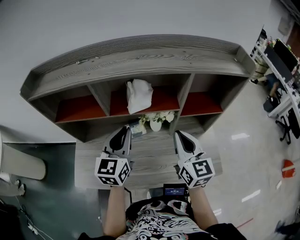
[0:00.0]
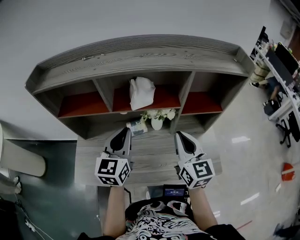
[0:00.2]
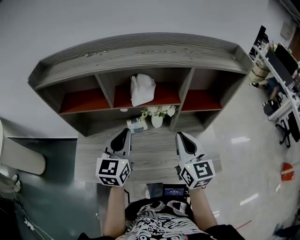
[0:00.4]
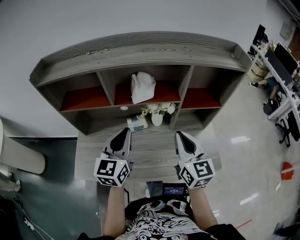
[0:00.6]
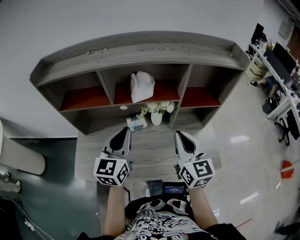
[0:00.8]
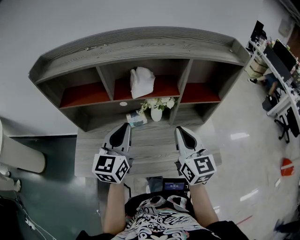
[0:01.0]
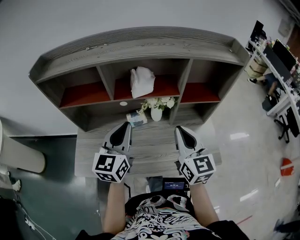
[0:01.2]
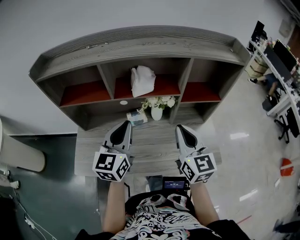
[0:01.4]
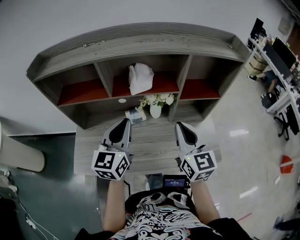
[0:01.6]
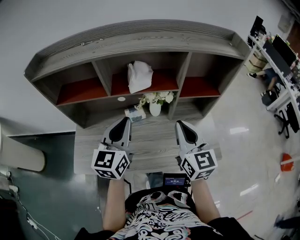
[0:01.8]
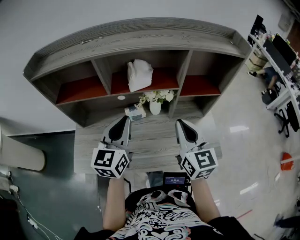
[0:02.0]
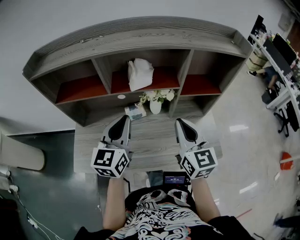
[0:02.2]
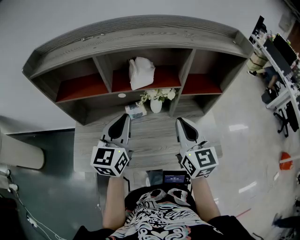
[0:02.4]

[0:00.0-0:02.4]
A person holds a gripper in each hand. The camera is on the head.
0.0 to 1.2 s: The two grippers go some 5 cm backward.
1.2 to 2.4 s: Both grippers stay put.

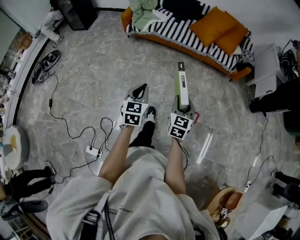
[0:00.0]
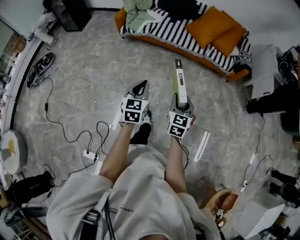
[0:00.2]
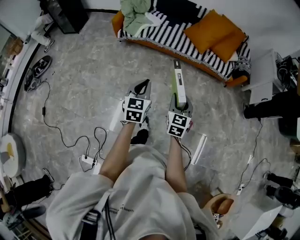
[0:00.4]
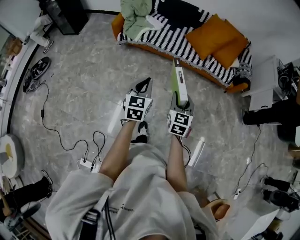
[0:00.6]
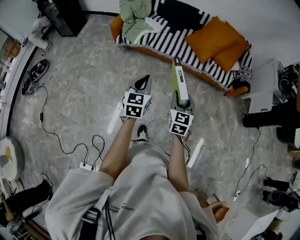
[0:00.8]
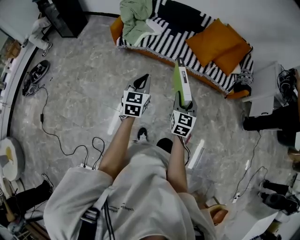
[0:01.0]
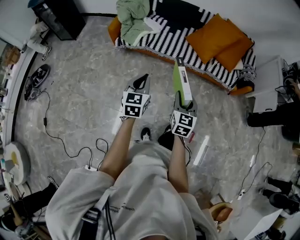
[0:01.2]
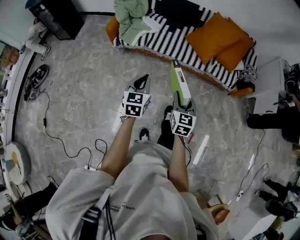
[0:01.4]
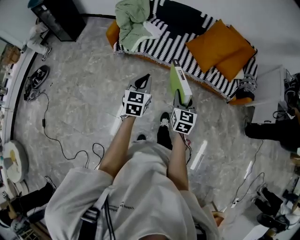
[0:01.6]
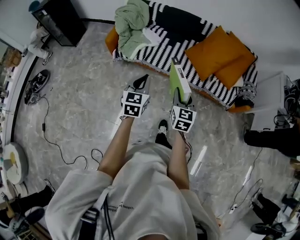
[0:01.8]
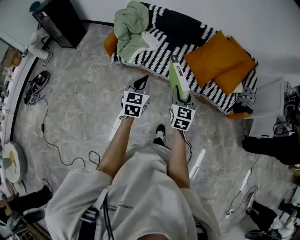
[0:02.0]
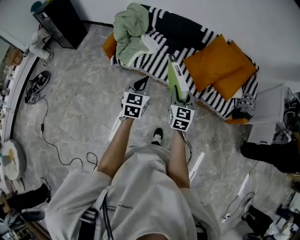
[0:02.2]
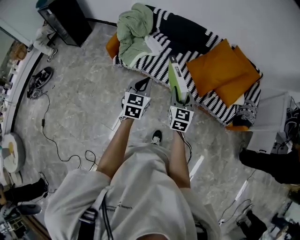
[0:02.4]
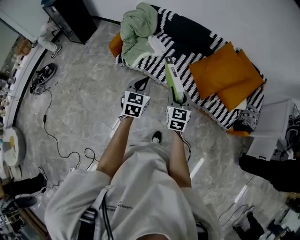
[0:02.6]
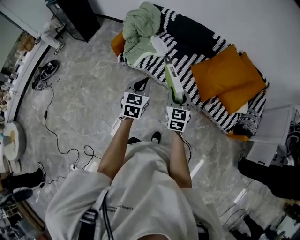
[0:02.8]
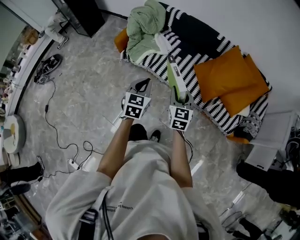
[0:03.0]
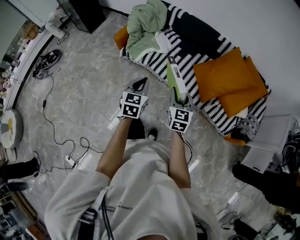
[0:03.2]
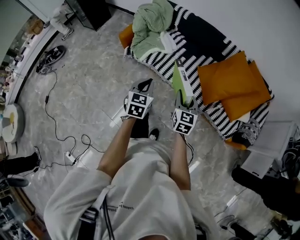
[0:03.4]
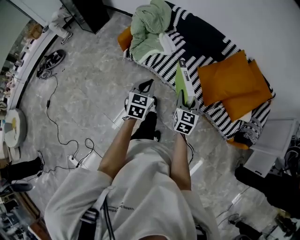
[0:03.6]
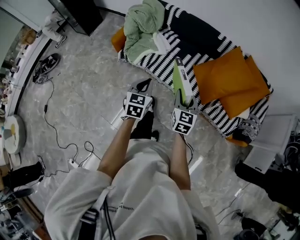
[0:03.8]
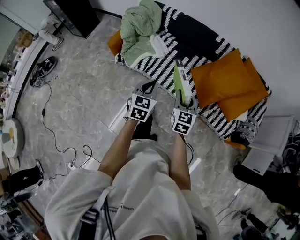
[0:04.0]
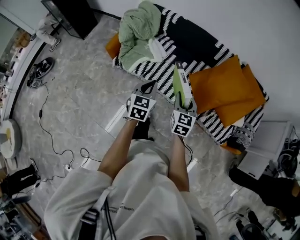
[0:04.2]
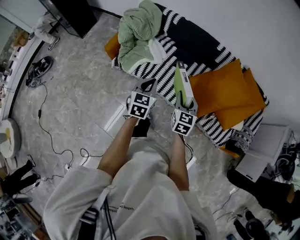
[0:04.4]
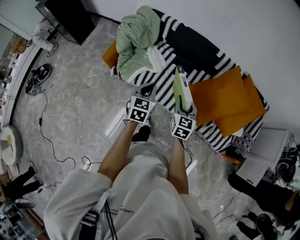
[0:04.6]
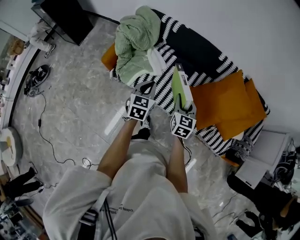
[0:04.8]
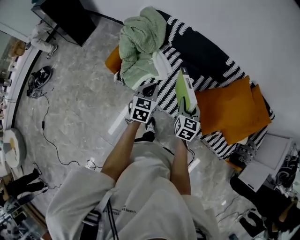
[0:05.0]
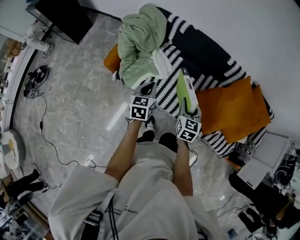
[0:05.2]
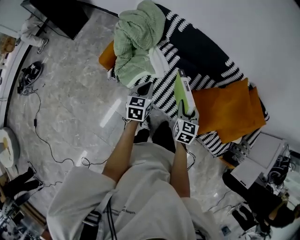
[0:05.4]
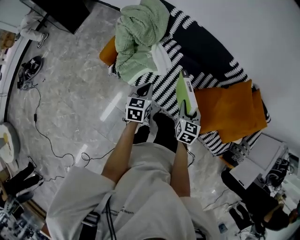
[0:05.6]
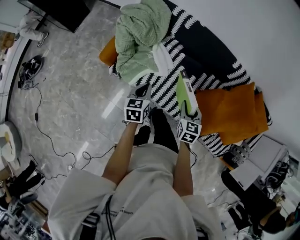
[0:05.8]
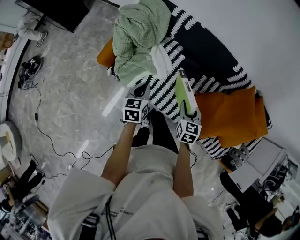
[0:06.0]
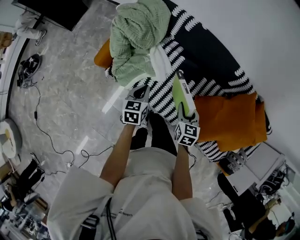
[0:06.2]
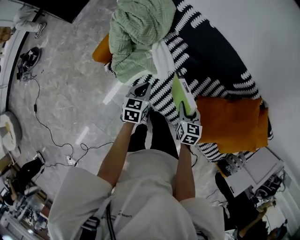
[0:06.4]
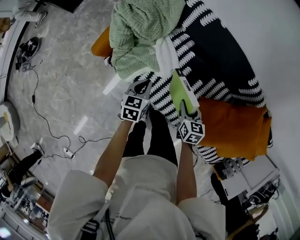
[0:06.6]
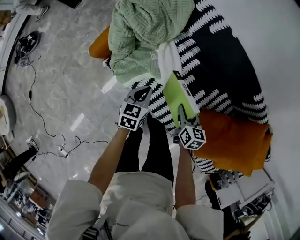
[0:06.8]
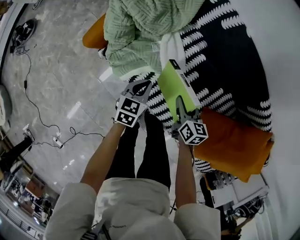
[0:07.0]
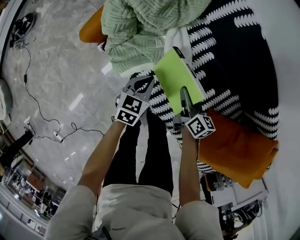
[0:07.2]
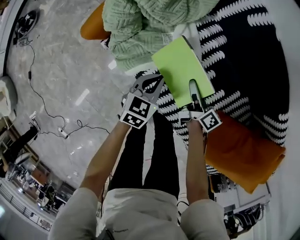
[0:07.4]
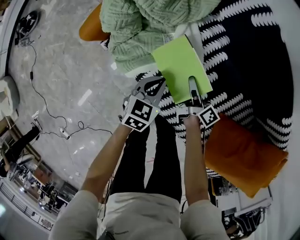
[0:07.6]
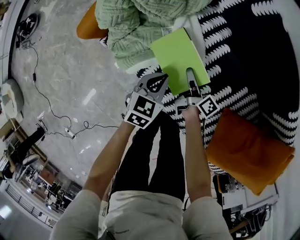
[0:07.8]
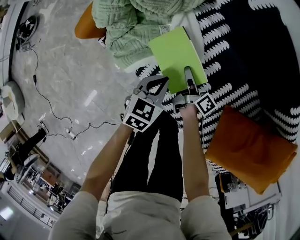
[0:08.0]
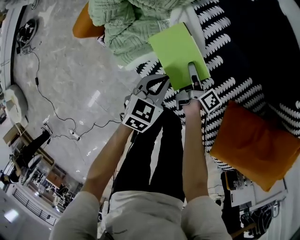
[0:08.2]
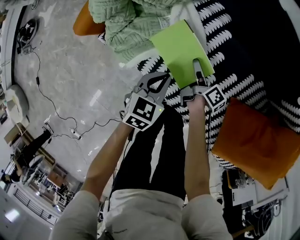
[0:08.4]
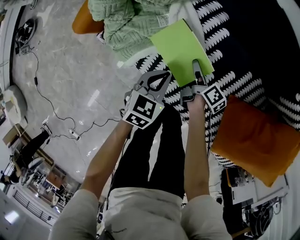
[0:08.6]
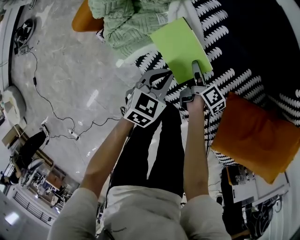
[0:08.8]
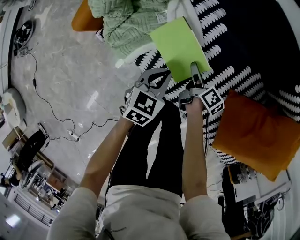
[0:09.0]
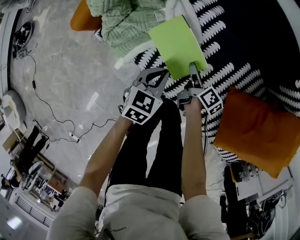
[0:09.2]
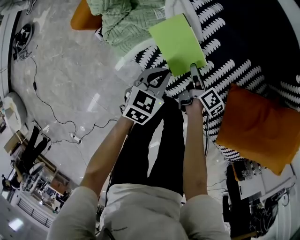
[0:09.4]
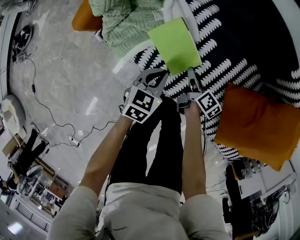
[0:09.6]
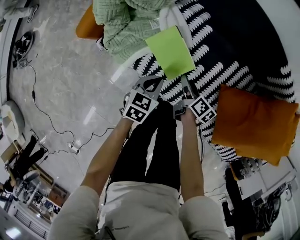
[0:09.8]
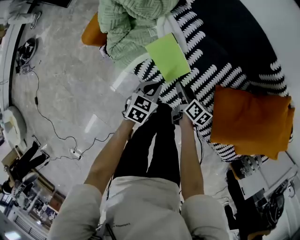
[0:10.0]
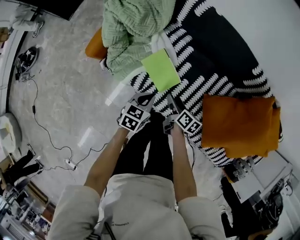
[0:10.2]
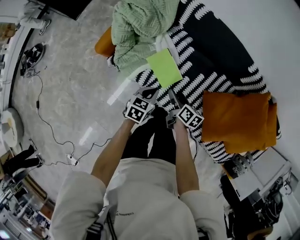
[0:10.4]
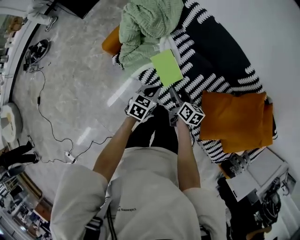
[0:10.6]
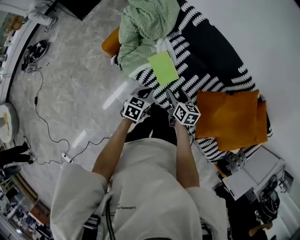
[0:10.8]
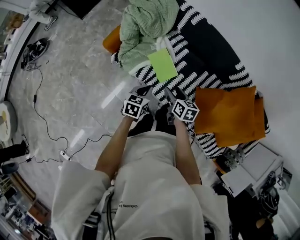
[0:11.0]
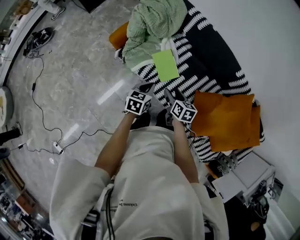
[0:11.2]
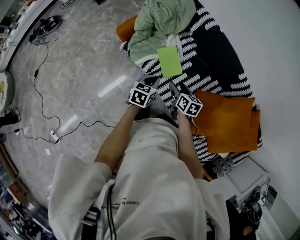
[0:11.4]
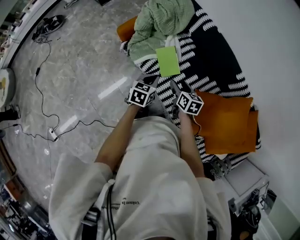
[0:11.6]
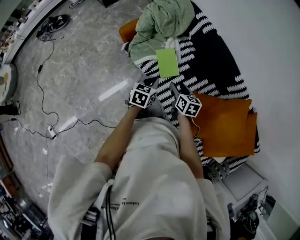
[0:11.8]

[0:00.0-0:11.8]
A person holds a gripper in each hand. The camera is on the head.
0.0 to 1.4 s: Both grippers move forward, some 35 cm.
1.4 to 3.0 s: Both grippers travel together forward, some 25 cm.
3.0 to 4.4 s: Both grippers move forward, approximately 15 cm.
4.4 to 6.0 s: The right gripper heads forward and downward, covering some 25 cm. Meanwhile the left gripper moves forward, to the left and downward, roughly 30 cm, and rotates some 20 degrees.
6.0 to 7.4 s: Both grippers move downward and forward, about 30 cm. The right gripper turns by approximately 70 degrees.
7.4 to 8.8 s: The right gripper heads downward and backward, covering roughly 10 cm, swivels roughly 30 degrees, and opens. The left gripper heads backward and to the right, covering some 5 cm.
8.8 to 10.4 s: The left gripper travels upward and backward by approximately 15 cm. Meanwhile the right gripper goes about 25 cm upward and backward, and changes its angle by about 20 degrees.
10.4 to 11.8 s: Both grippers move upward and backward, some 15 cm. The right gripper swivels approximately 40 degrees. Meanwhile the left gripper changes its angle by roughly 20 degrees.

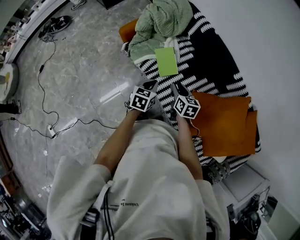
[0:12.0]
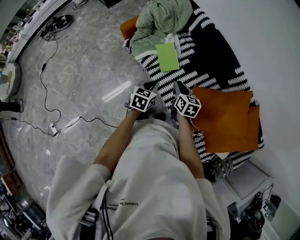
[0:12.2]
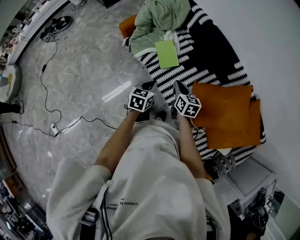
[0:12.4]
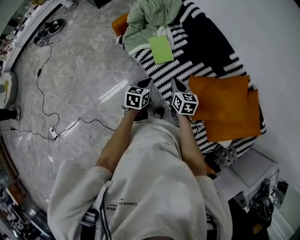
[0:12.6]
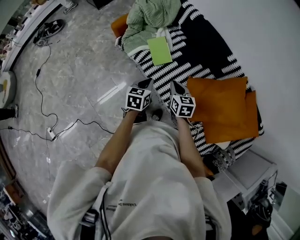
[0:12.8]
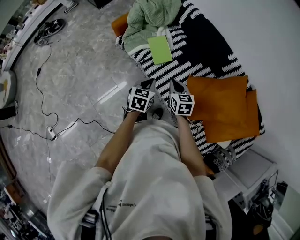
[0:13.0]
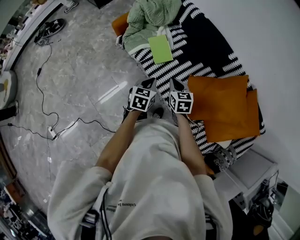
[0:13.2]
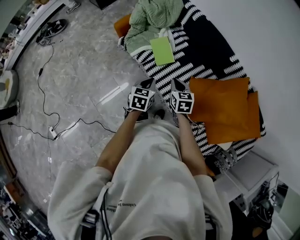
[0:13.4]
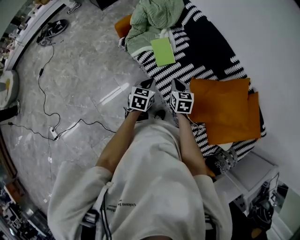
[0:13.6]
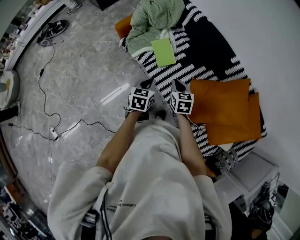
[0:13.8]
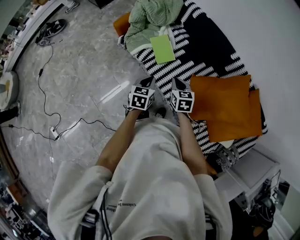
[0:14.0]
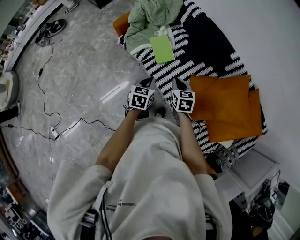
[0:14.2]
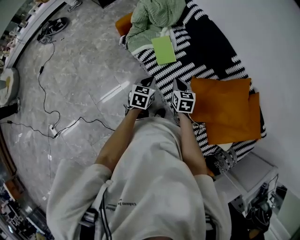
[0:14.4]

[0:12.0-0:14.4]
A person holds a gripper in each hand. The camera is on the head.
12.0 to 13.2 s: Both grippers move backward, some 10 cm. The right gripper closes up.
13.2 to 14.4 s: There are only small adjustments of the grippers.

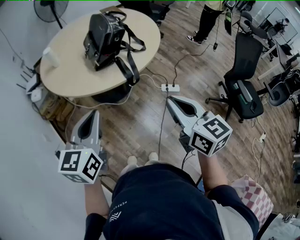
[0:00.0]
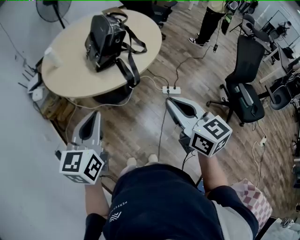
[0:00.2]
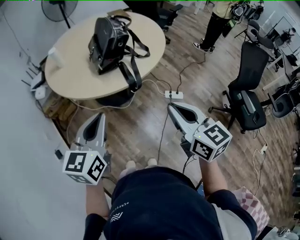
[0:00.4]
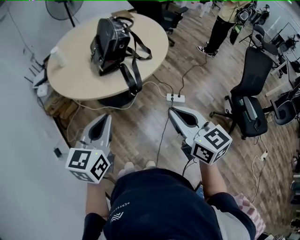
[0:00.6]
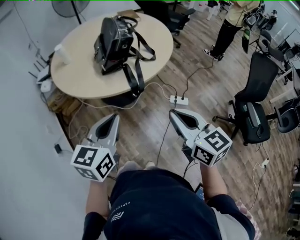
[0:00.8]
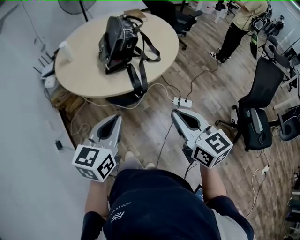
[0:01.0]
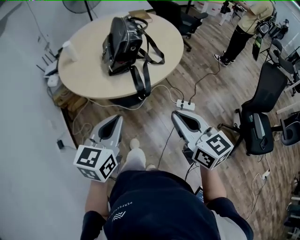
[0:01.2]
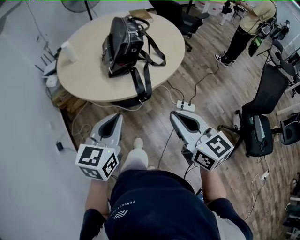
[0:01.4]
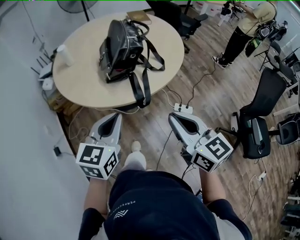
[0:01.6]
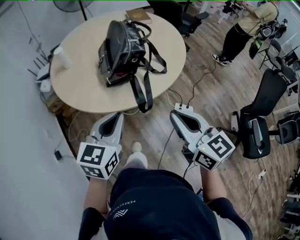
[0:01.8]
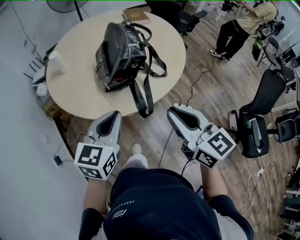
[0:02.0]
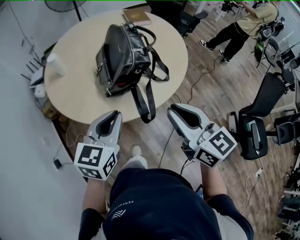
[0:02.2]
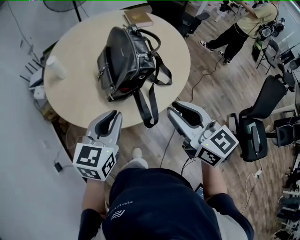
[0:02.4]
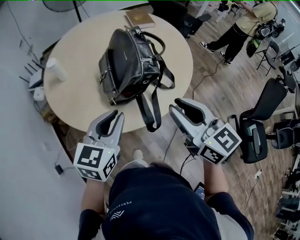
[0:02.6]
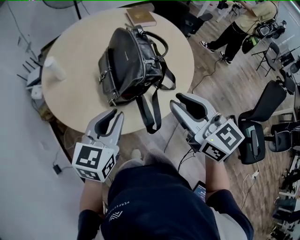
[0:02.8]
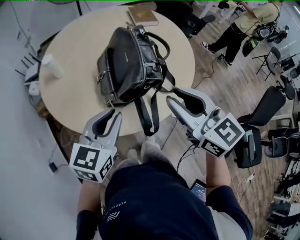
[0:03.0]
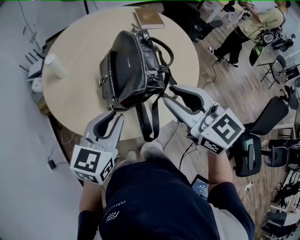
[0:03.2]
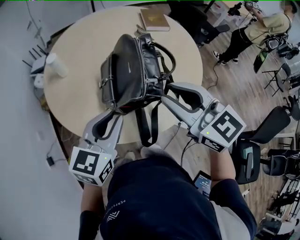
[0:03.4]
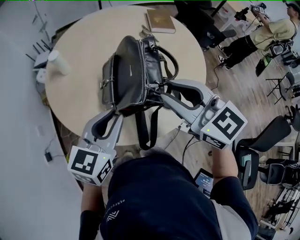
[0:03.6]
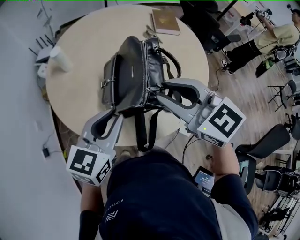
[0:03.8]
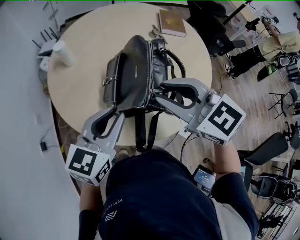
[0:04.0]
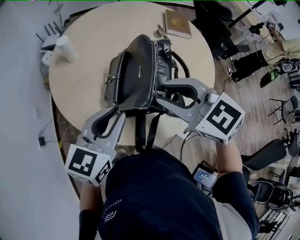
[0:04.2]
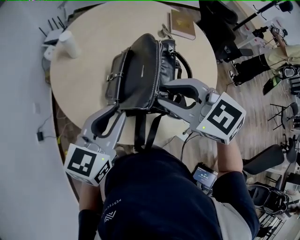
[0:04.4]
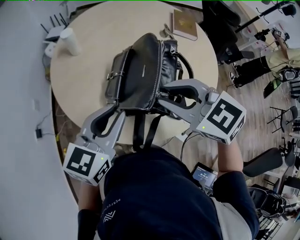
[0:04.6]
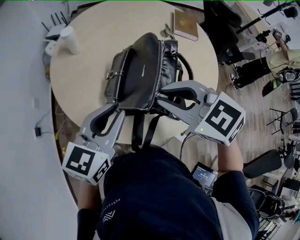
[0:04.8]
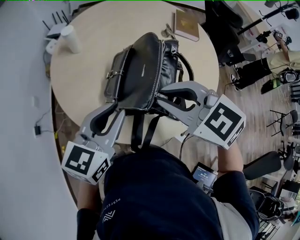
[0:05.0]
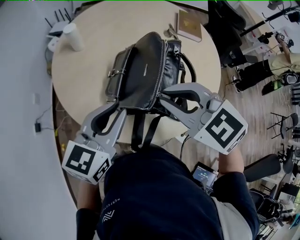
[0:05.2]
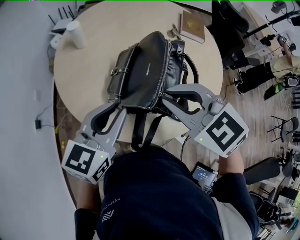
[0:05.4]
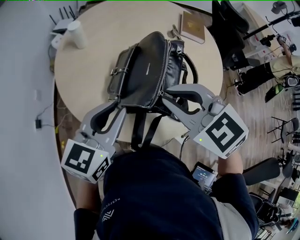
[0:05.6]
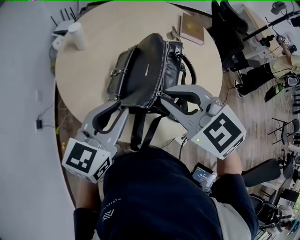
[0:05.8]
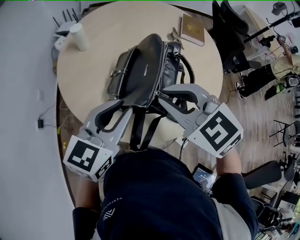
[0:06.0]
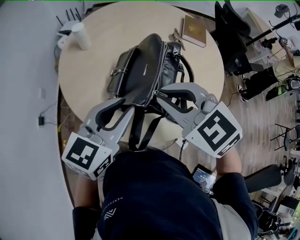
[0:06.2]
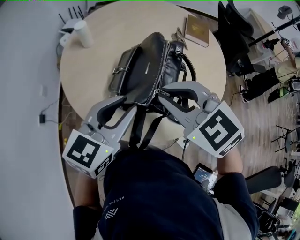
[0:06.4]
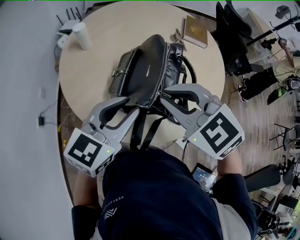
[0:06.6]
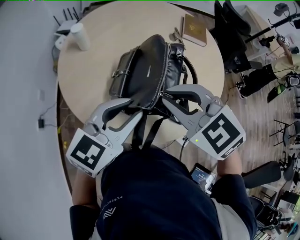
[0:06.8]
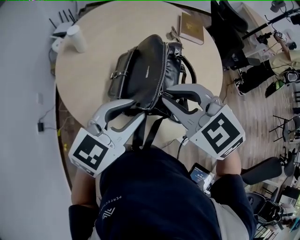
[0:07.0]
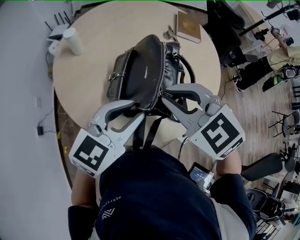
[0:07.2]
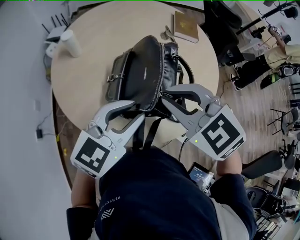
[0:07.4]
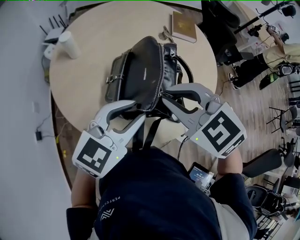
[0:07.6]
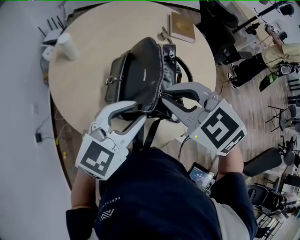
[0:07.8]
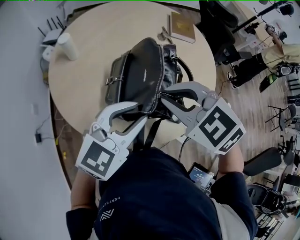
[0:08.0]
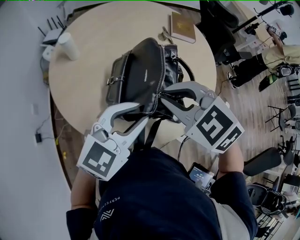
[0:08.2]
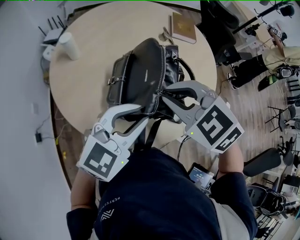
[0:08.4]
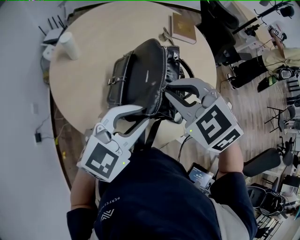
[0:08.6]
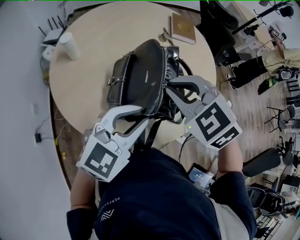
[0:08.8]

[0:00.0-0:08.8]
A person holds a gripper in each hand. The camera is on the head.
0.0 to 1.4 s: The right gripper moves forward, some 5 cm; the left gripper moves to the right and forward, some 10 cm.
1.4 to 3.0 s: The two grippers go some 25 cm forward. The right gripper opens.
3.0 to 4.4 s: The left gripper changes place by approximately 5 cm. The right gripper moves approximately 10 cm, and changes its angle by roughly 50 degrees.
4.4 to 5.8 s: There are only small adjustments of the grippers.
5.8 to 7.4 s: The left gripper swivels approximately 20 degrees.
7.4 to 8.8 s: The grippers make only small movements.
